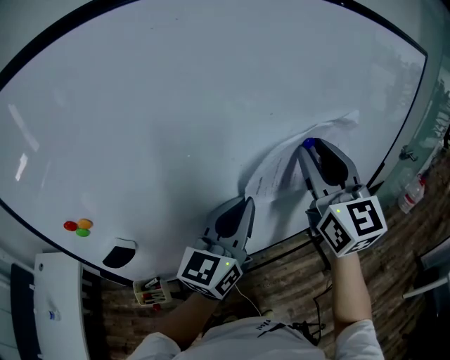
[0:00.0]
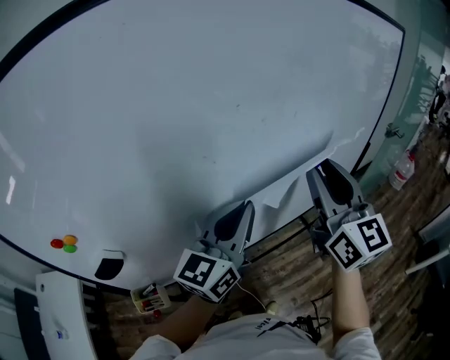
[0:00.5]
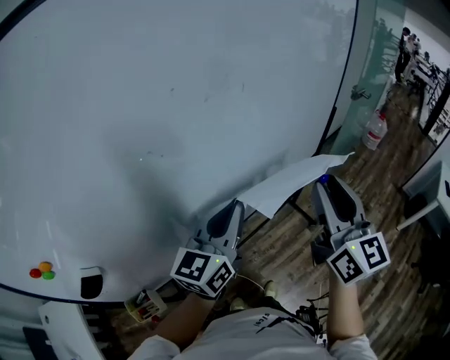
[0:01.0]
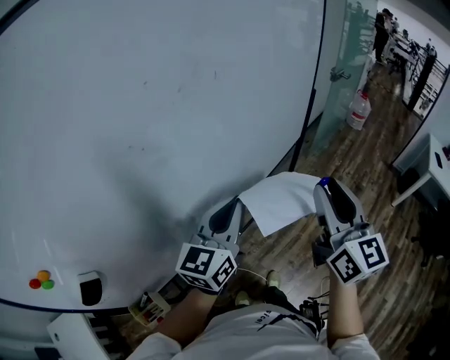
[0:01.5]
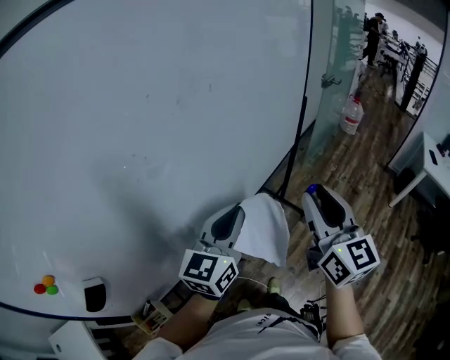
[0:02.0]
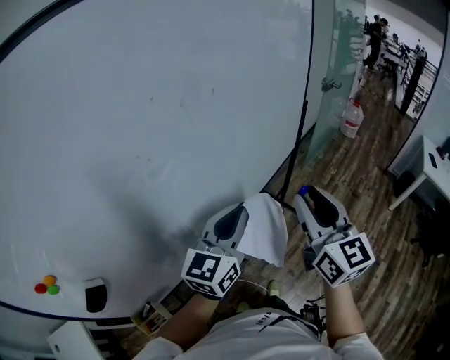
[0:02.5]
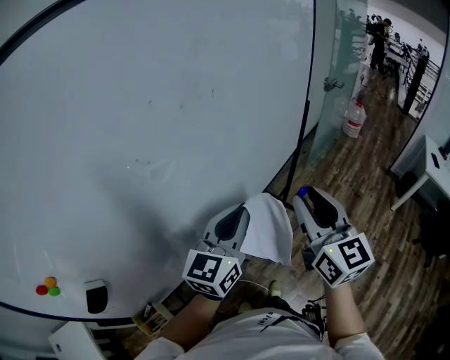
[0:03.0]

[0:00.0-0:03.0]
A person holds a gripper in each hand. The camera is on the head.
0:00.0 to 0:01.5: The left gripper moves some 15 cm, and changes its angle by about 30 degrees; the right gripper changes place by approximately 25 cm, and changes its angle by about 30 degrees.
0:01.5 to 0:03.0: The grippers make only small movements.

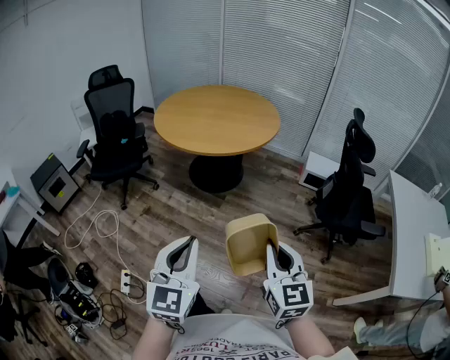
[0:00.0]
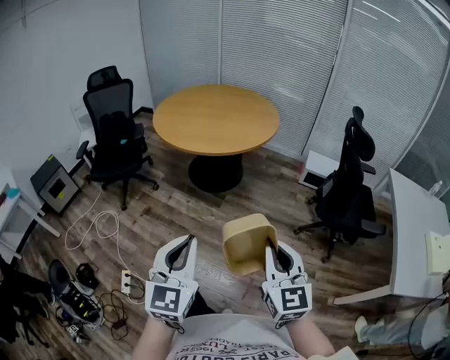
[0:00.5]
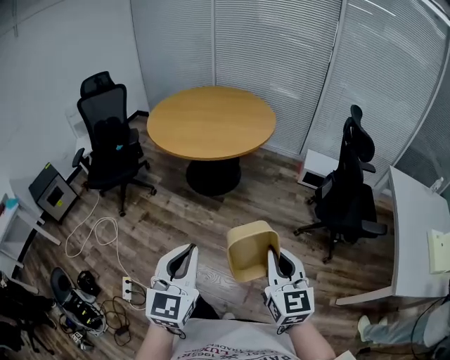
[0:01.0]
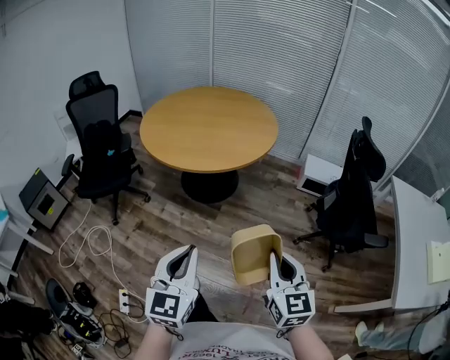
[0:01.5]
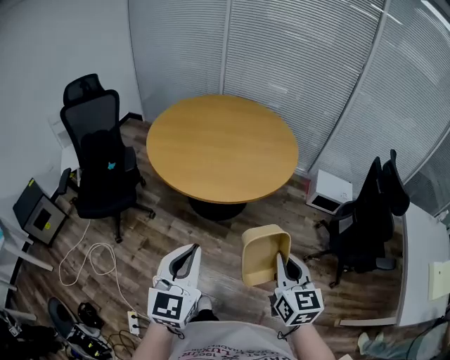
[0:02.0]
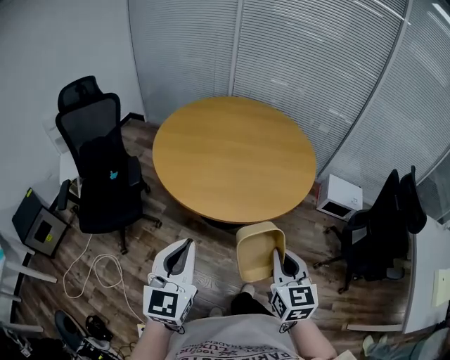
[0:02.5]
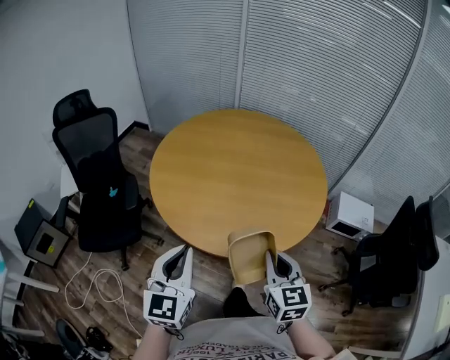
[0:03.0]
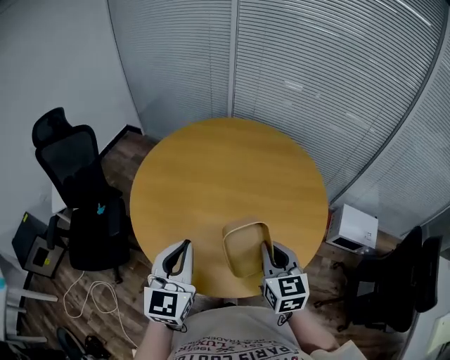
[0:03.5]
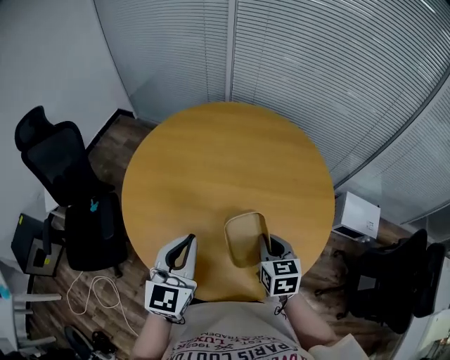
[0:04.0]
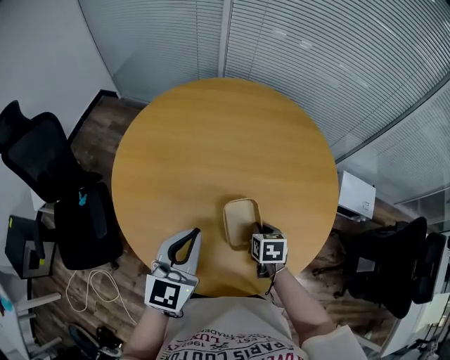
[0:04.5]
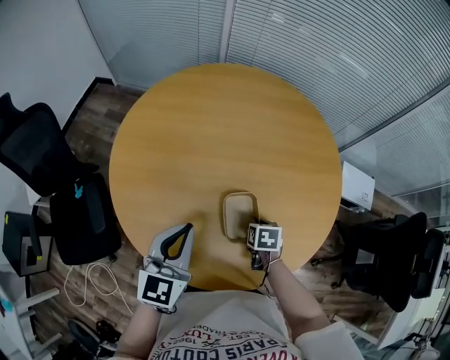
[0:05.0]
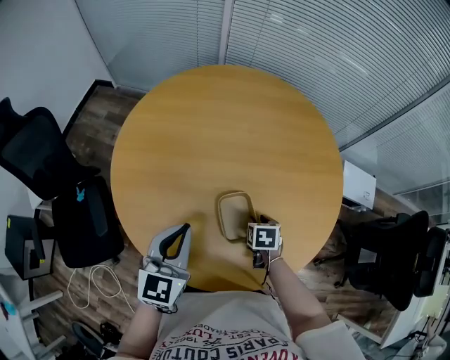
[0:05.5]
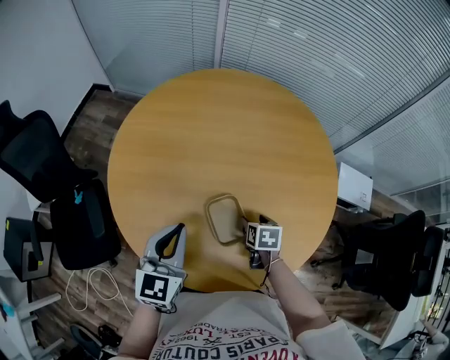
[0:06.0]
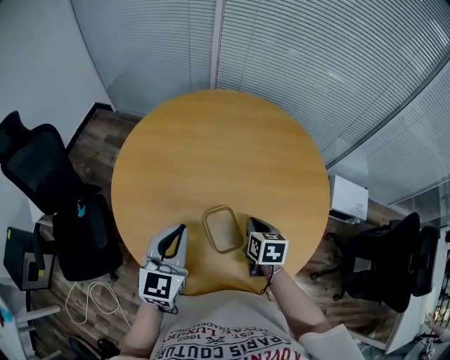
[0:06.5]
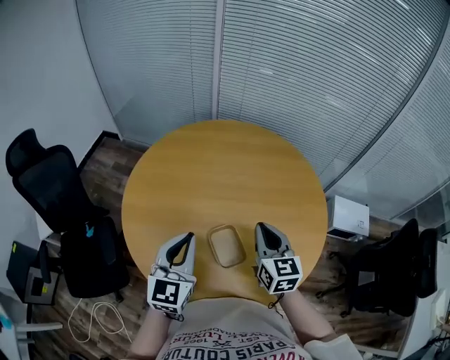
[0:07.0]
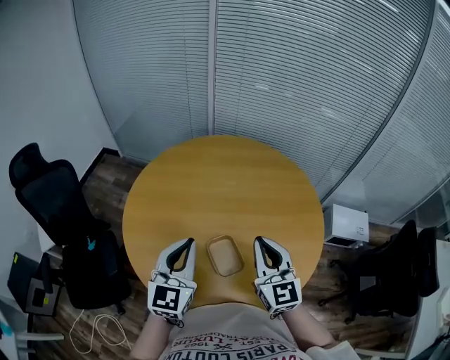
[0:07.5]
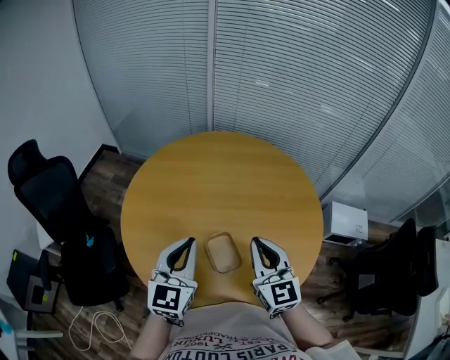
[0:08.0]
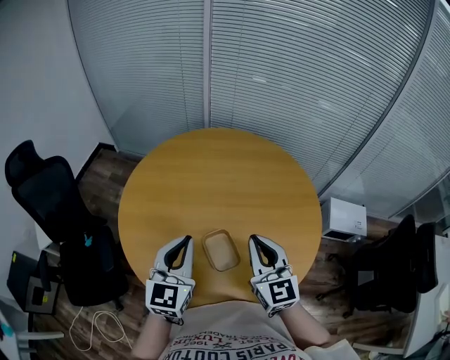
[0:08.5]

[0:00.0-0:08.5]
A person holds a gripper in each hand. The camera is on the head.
0:00.0 to 0:02.0: Both grippers travel together forward and to the left, some 35 cm.
0:02.0 to 0:04.0: Both grippers are carried forward, about 60 cm. The right gripper swivels roughly 20 degrees.
0:04.0 to 0:06.5: The right gripper heads downward, covering approximately 5 cm, and opens, then closes again. The left gripper moves to the left, about 5 cm.
0:06.5 to 0:08.5: The right gripper goes some 20 cm upward, and points its fingers approximately 40 degrees further upward. Meanwhile the left gripper heads upward, covering about 5 cm.

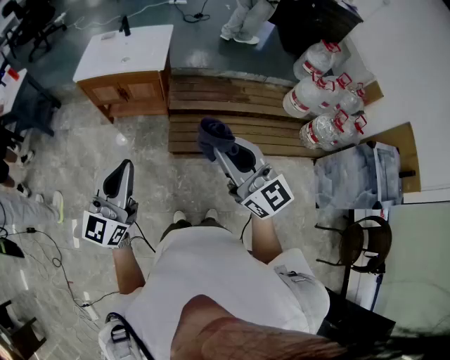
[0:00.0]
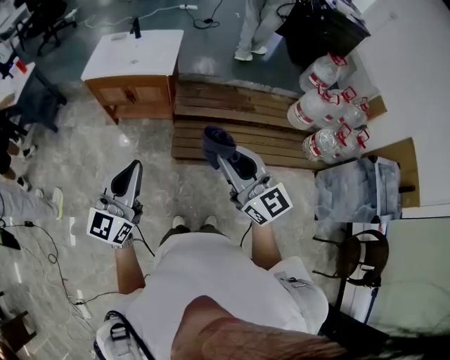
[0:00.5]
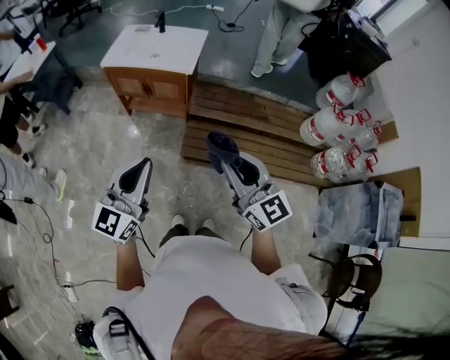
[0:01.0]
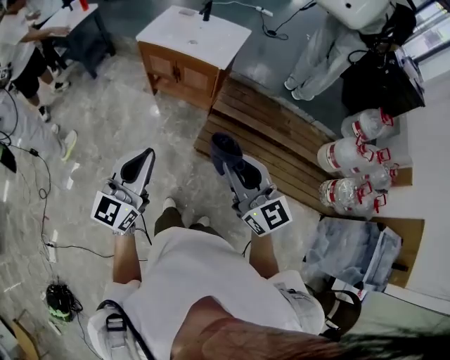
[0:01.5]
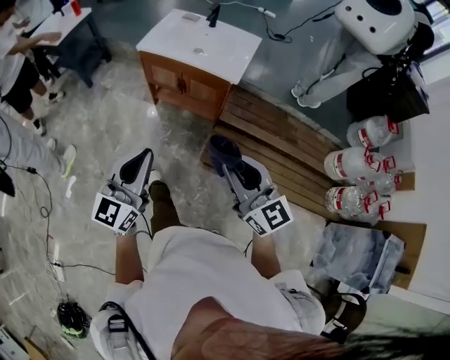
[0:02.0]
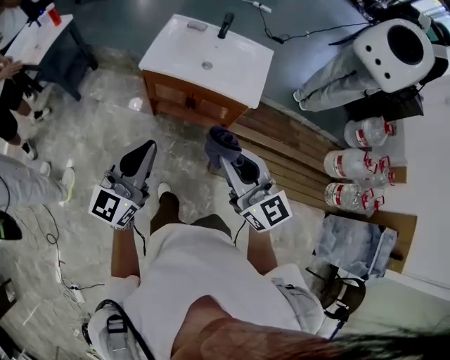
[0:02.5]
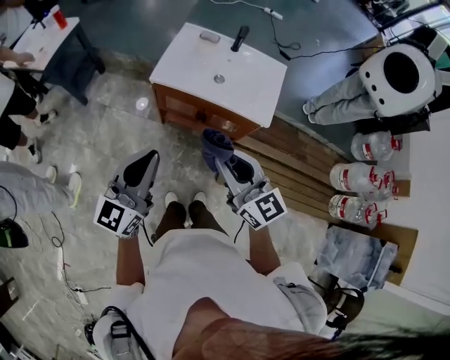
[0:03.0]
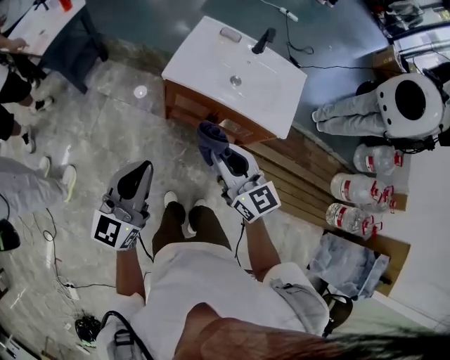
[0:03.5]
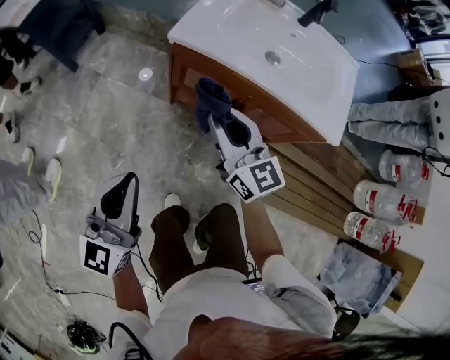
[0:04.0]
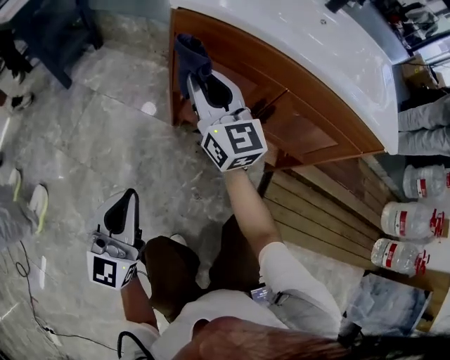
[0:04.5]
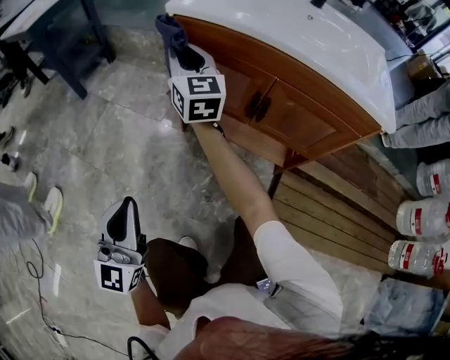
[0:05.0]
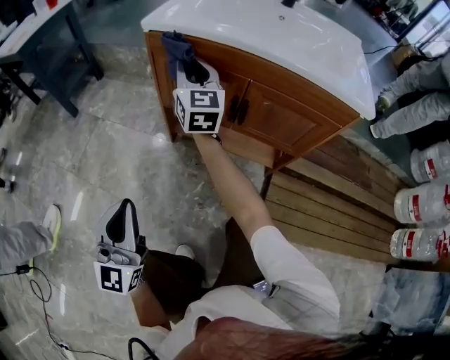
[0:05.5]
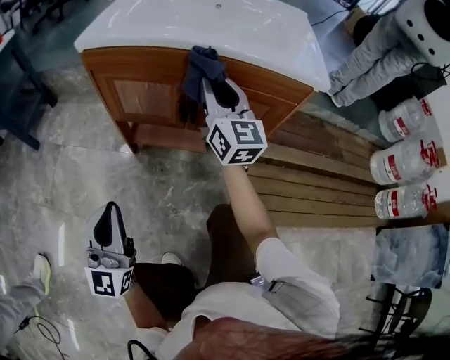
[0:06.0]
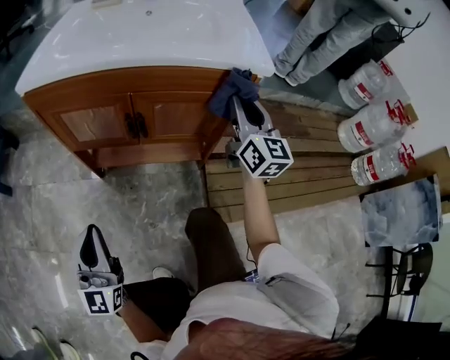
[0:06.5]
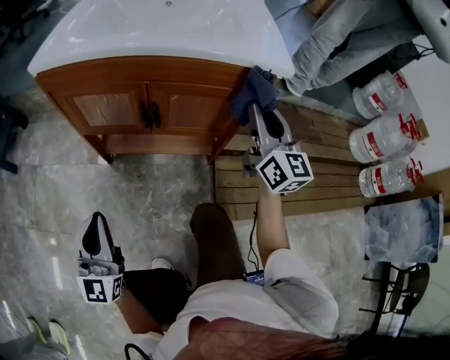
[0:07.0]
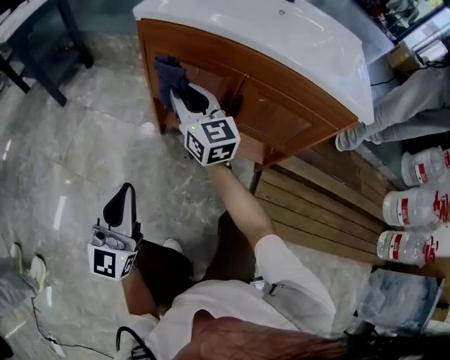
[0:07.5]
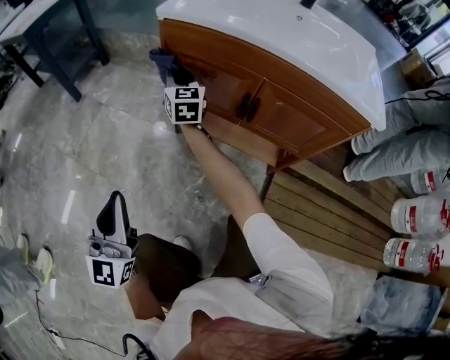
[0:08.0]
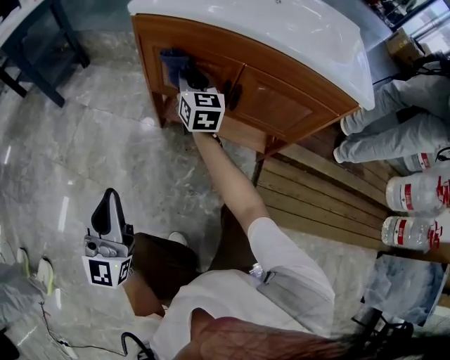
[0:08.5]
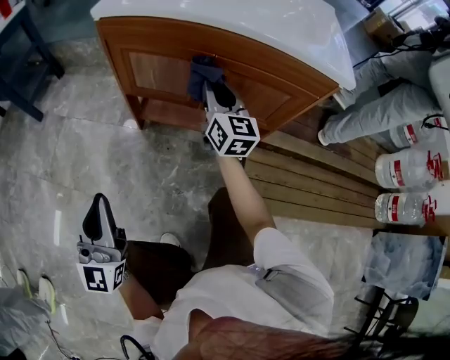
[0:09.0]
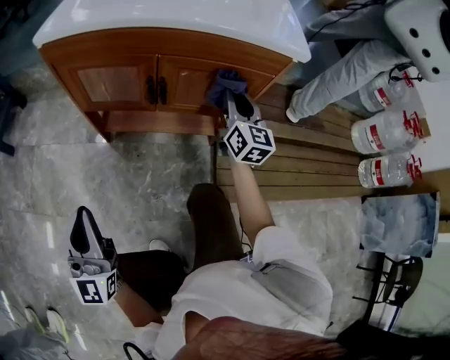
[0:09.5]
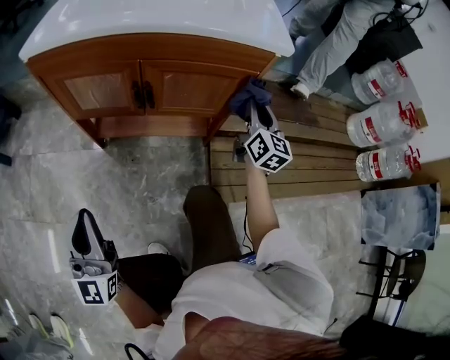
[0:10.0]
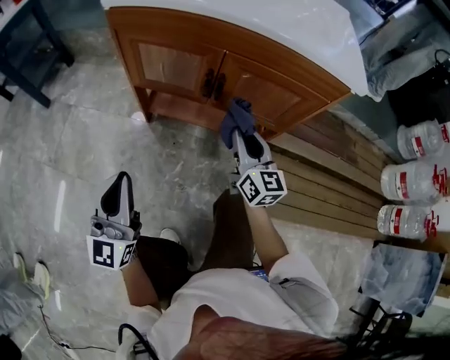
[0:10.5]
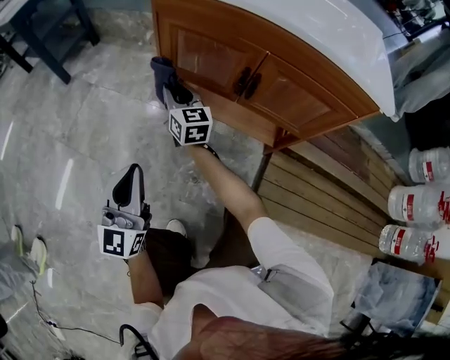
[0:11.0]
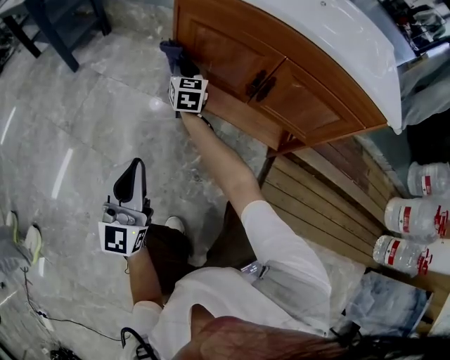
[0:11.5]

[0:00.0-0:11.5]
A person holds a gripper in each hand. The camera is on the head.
0:00.0 to 0:02.0: The two grippers go some 20 cm forward, to the left and downward.
0:02.0 to 0:04.0: The two grippers travel together, forward and to the left, some 50 cm. The grippers both shift downward by approximately 30 cm.
0:04.0 to 0:06.0: The left gripper is displaced downward by roughly 25 cm. The right gripper goes about 20 cm to the right and downward, and changes its angle by approximately 30 degrees.
0:06.0 to 0:07.5: The right gripper travels to the left by some 20 cm, and rotates some 30 degrees.
0:07.5 to 0:09.5: The right gripper moves to the right, some 35 cm, and changes its angle by about 40 degrees.
0:09.5 to 0:11.5: The left gripper heads downward, covering approximately 5 cm, while the right gripper shifts by approximately 50 cm, and turns by approximately 30 degrees.

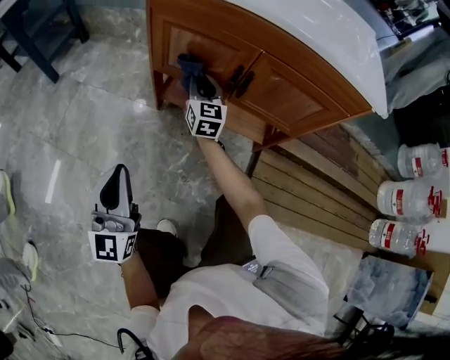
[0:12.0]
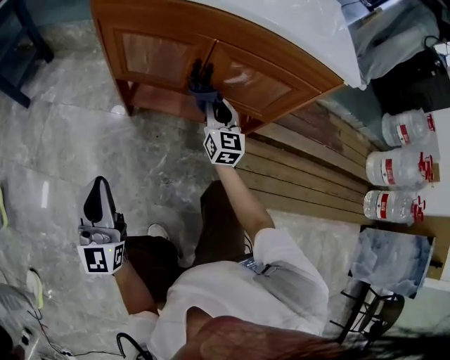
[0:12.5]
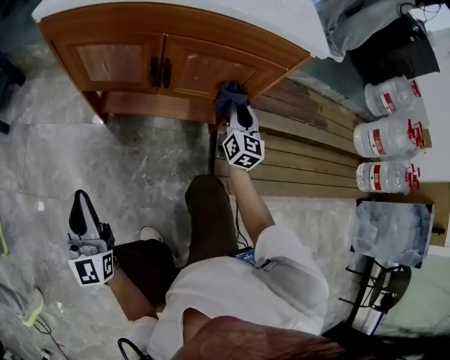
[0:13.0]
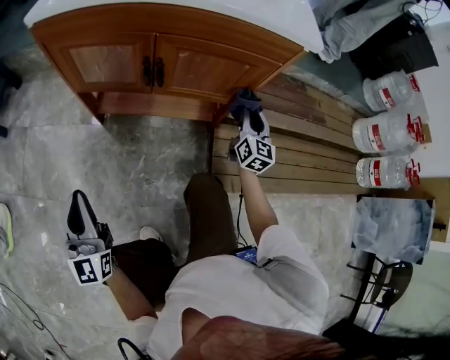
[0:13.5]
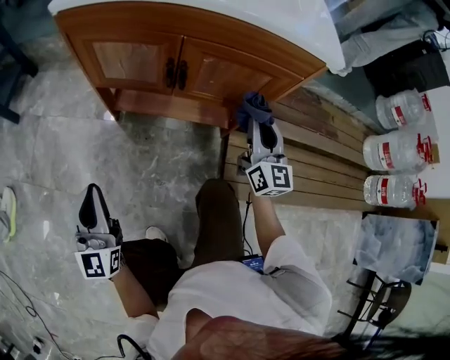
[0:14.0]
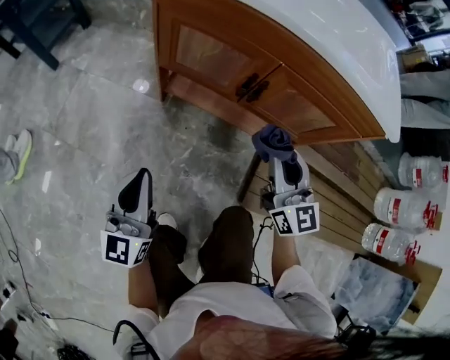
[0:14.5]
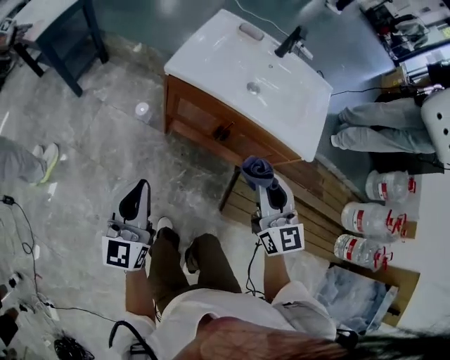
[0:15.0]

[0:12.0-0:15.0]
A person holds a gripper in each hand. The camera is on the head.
0:12.0 to 0:13.5: The right gripper moves to the right, roughly 40 cm, and swivels approximately 30 degrees.
0:13.5 to 0:15.0: The left gripper shifts some 30 cm upward. Meanwhile the right gripper shifts roughly 50 cm upward and to the left, and changes its angle by about 40 degrees.
